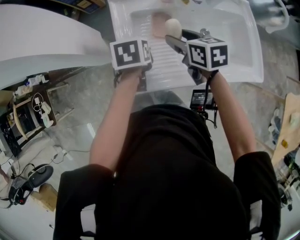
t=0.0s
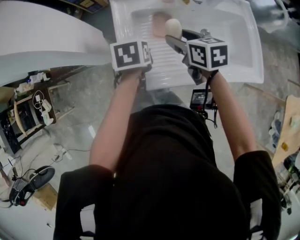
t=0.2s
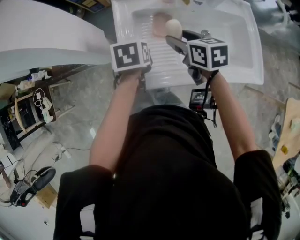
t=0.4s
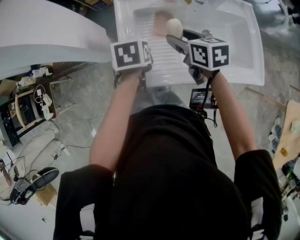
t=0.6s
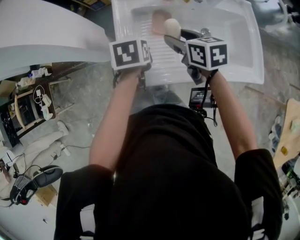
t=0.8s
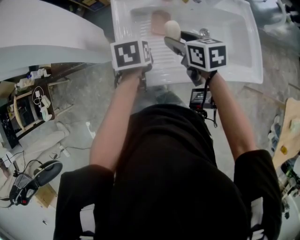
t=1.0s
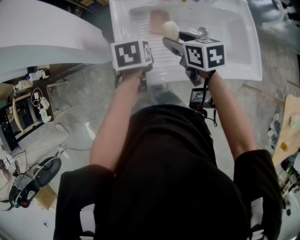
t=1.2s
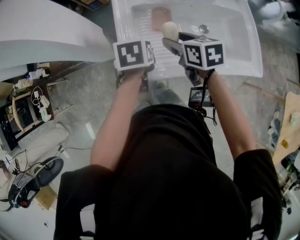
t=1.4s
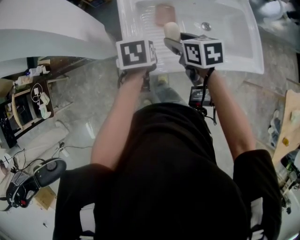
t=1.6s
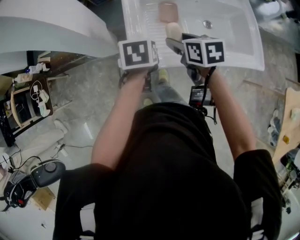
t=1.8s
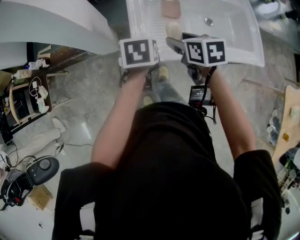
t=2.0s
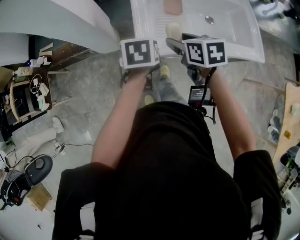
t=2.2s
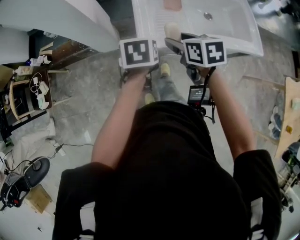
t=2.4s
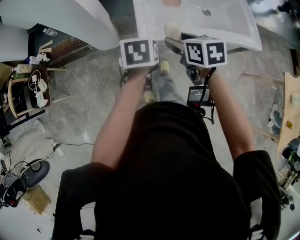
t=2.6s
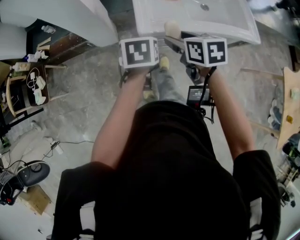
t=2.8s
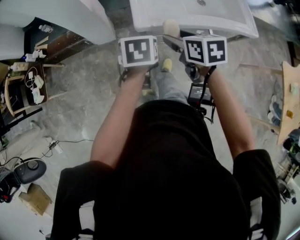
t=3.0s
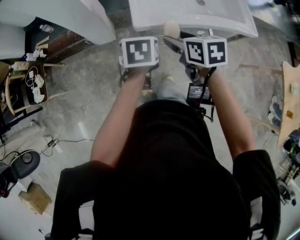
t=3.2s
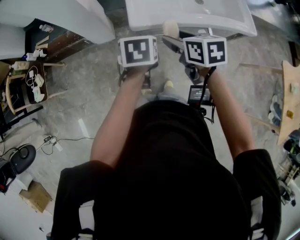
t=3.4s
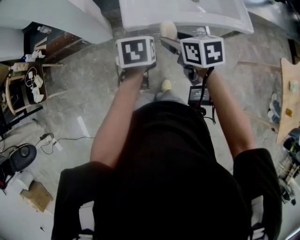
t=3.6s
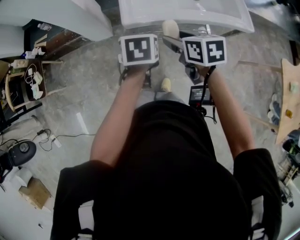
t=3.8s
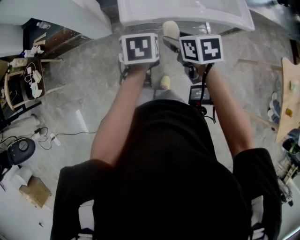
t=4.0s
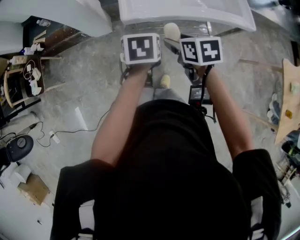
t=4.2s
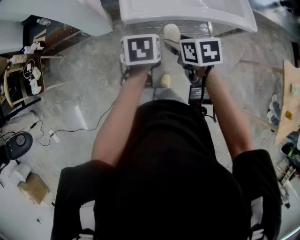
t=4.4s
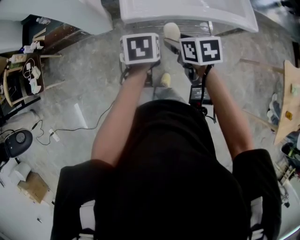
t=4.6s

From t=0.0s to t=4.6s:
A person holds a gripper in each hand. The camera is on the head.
From t=0.0s to t=1.6s: Both grippers move backward, some 5 cm.
From t=1.6s to t=3.0s: The left gripper goes approximately 20 cm backward, while the right gripper shifts roughly 25 cm backward and to the left.
From t=3.0s to t=4.6s: The grippers both shift to the right by approximately 5 cm.

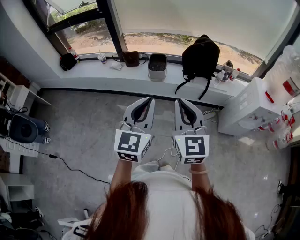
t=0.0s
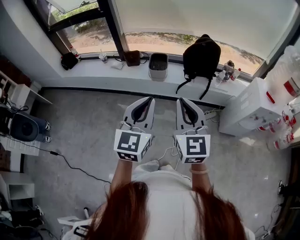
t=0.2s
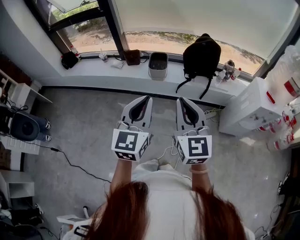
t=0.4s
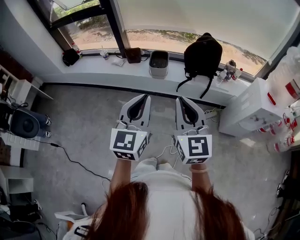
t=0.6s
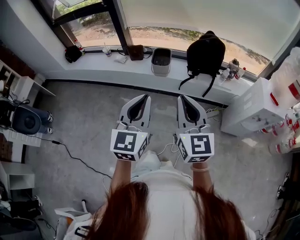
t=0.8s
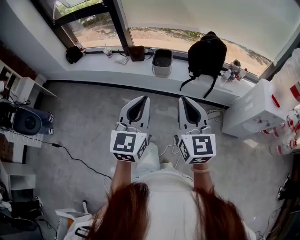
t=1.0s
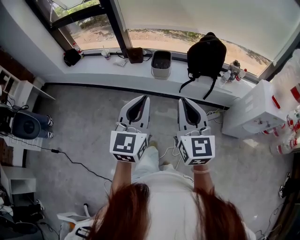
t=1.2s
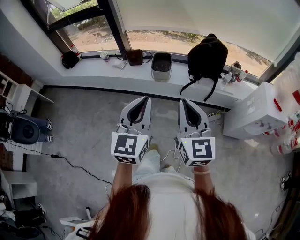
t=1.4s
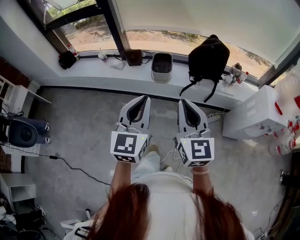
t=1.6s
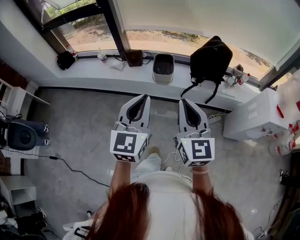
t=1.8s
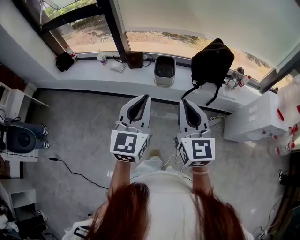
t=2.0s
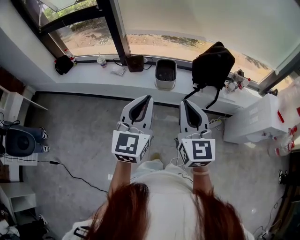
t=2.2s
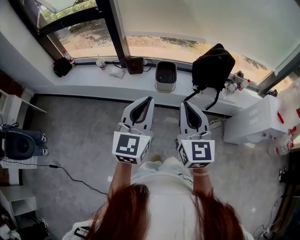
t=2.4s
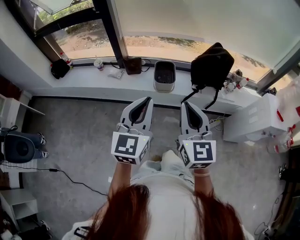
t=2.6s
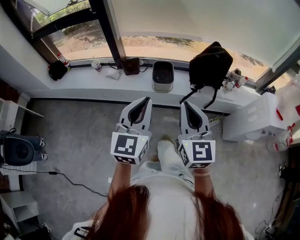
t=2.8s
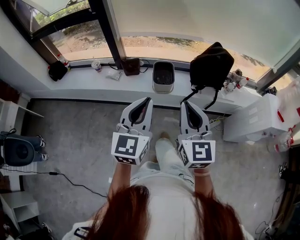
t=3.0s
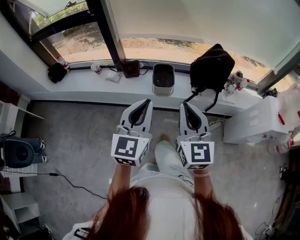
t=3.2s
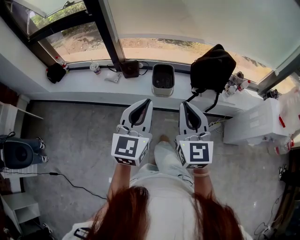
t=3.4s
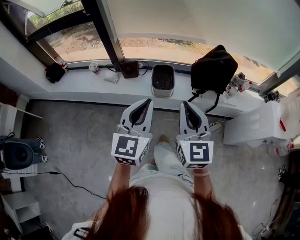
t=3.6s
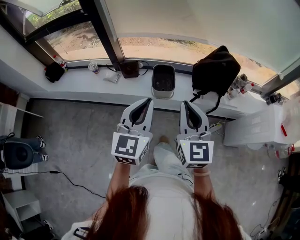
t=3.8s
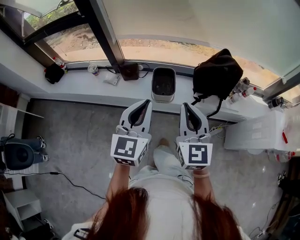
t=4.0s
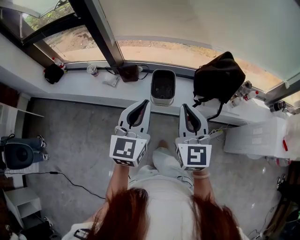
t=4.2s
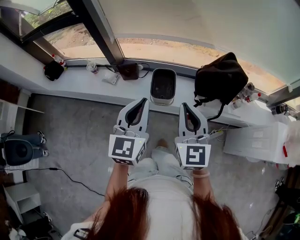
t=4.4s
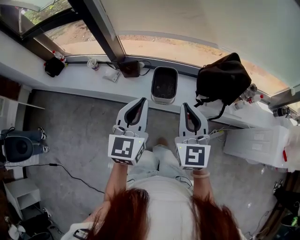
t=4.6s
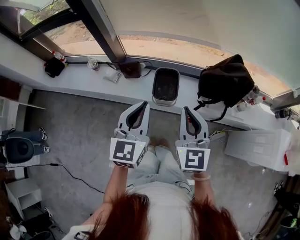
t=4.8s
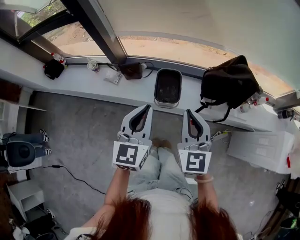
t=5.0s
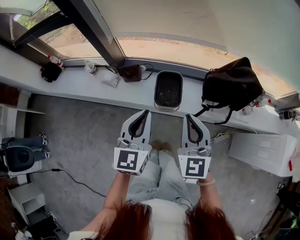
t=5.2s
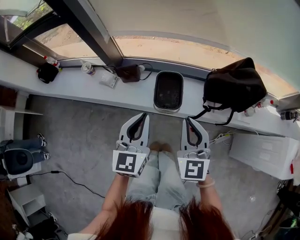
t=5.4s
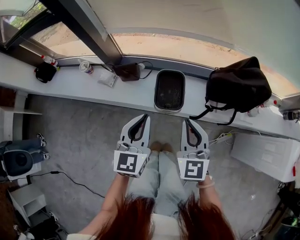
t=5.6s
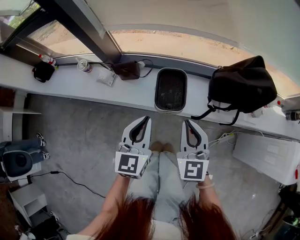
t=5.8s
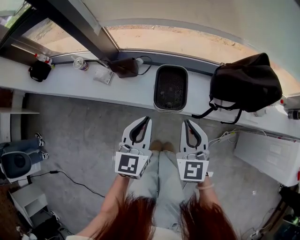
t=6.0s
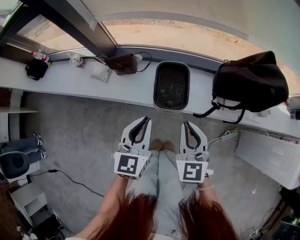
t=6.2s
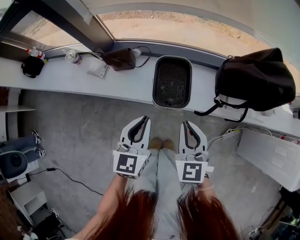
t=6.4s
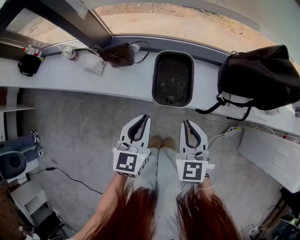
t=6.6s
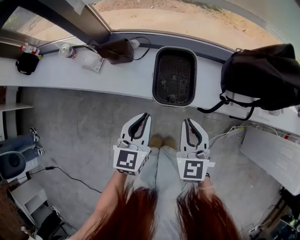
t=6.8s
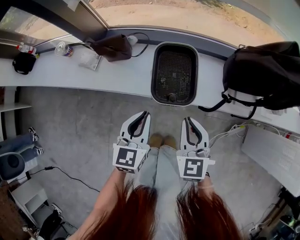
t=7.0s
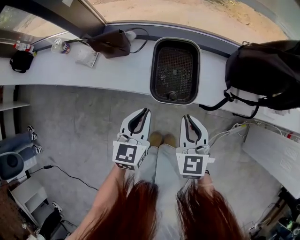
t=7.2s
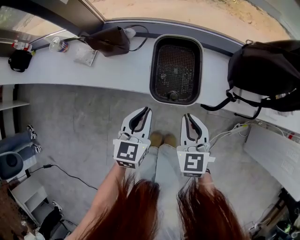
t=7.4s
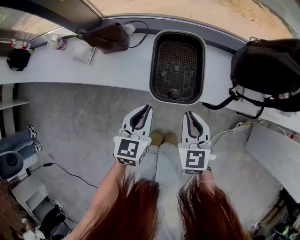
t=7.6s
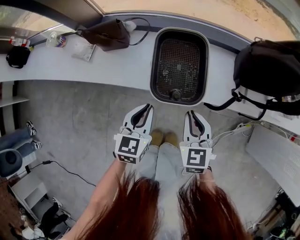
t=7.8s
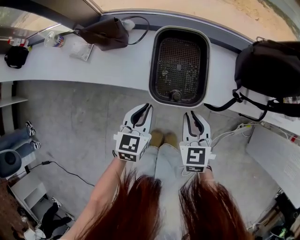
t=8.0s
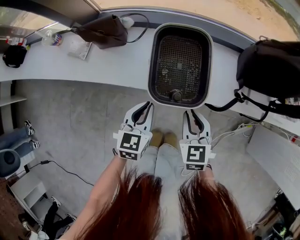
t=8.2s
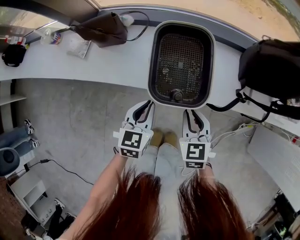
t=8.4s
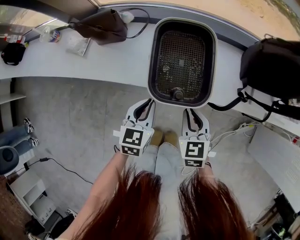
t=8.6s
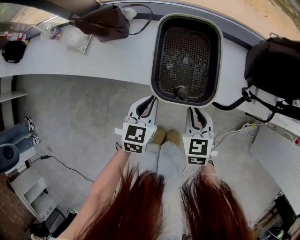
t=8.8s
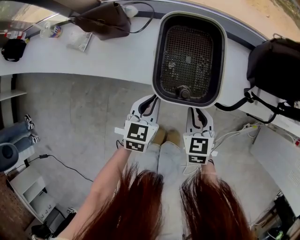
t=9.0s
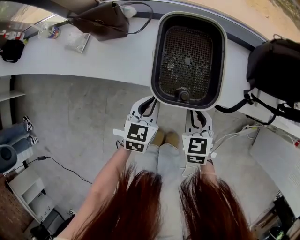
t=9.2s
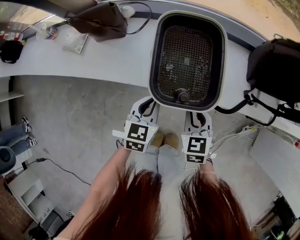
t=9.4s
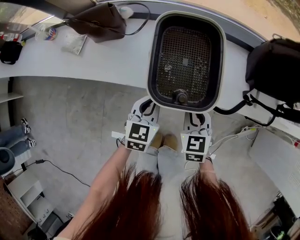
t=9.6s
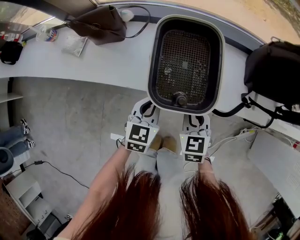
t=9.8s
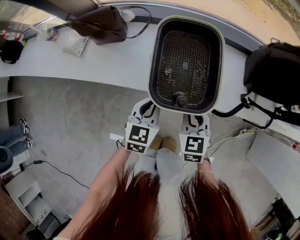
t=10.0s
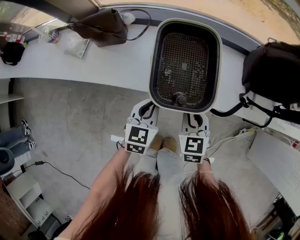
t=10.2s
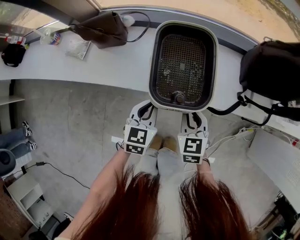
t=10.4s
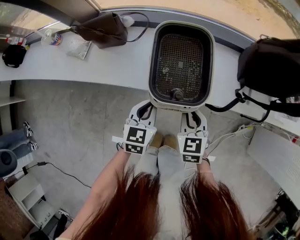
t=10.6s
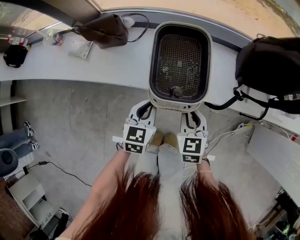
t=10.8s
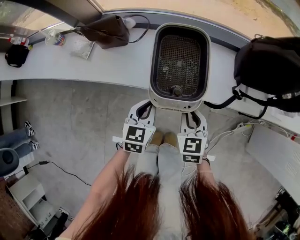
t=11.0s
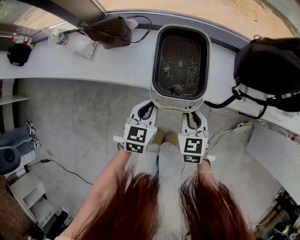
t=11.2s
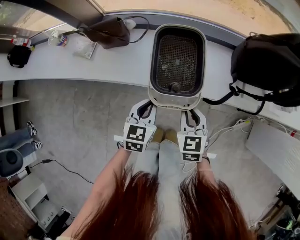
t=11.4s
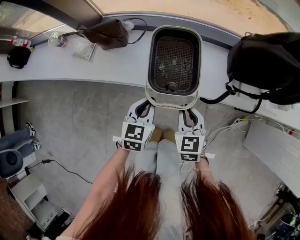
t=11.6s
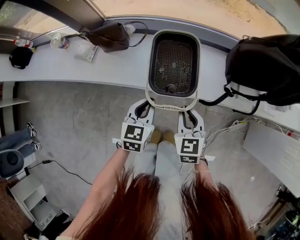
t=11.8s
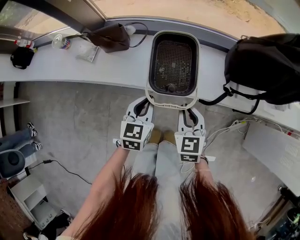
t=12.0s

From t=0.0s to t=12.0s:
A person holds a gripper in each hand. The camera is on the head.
From t=0.0s to t=1.6s: The two grippers go some 10 cm forward.
From t=1.6s to t=3.0s: Both grippers move forward and to the left, about 15 cm.
From t=3.0s to t=4.4s: Both grippers travel together forward, about 20 cm.
From t=4.4s to t=6.0s: The grippers both shift downward and forward by approximately 25 cm.
From t=6.0s to t=7.6s: Both grippers travel together downward, about 25 cm.
From t=7.6s to t=9.0s: The grippers both shift downward by about 15 cm.
From t=9.0s to t=10.4s: The grippers move only a little.
From t=10.4s to t=12.0s: The two grippers go about 10 cm upward.

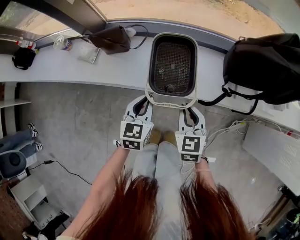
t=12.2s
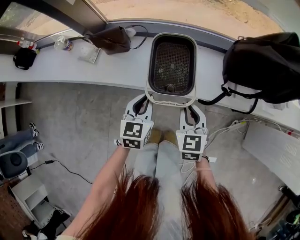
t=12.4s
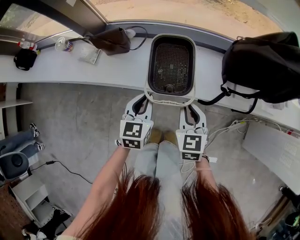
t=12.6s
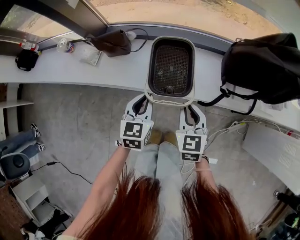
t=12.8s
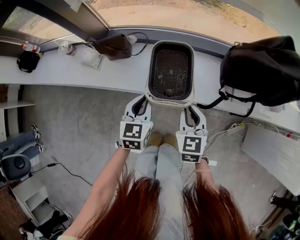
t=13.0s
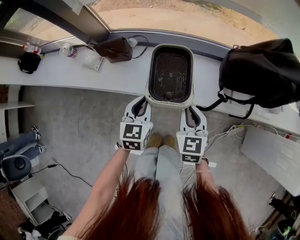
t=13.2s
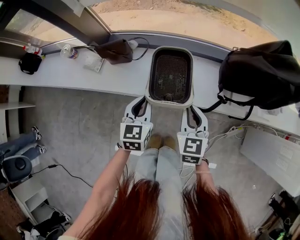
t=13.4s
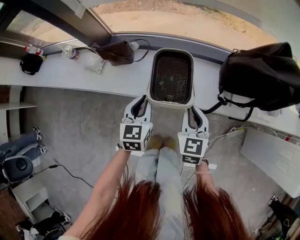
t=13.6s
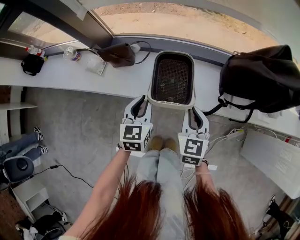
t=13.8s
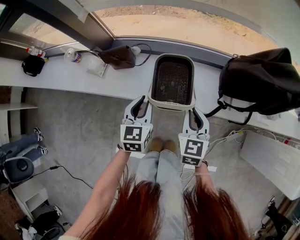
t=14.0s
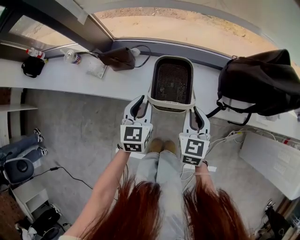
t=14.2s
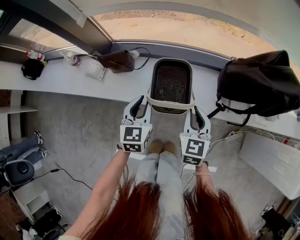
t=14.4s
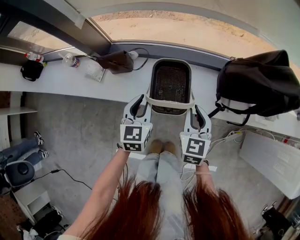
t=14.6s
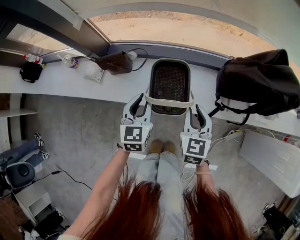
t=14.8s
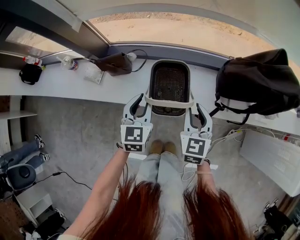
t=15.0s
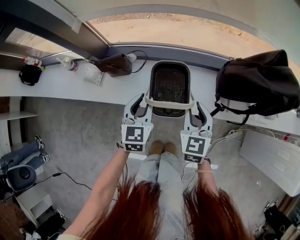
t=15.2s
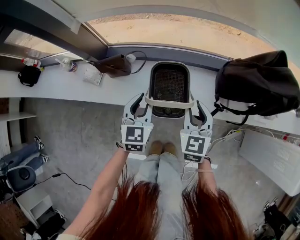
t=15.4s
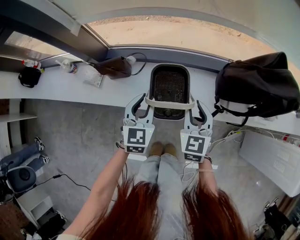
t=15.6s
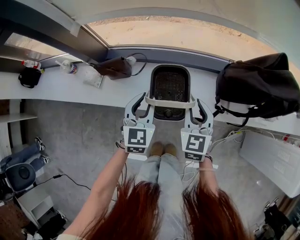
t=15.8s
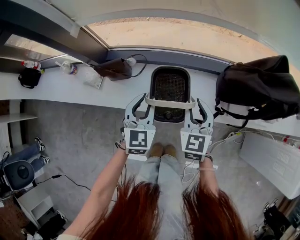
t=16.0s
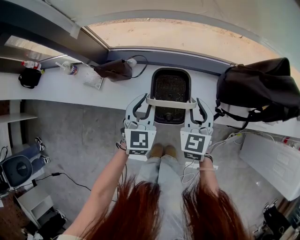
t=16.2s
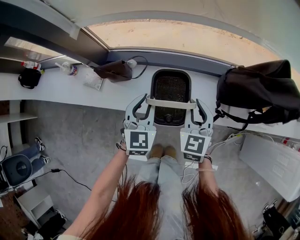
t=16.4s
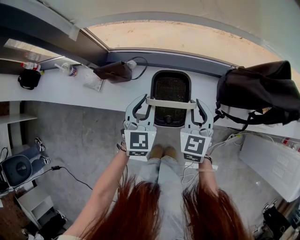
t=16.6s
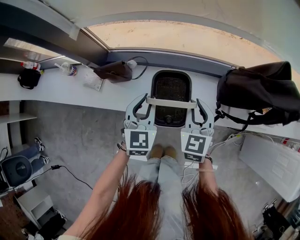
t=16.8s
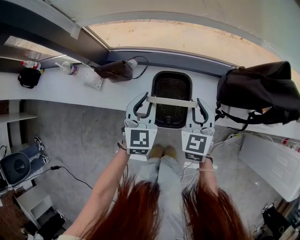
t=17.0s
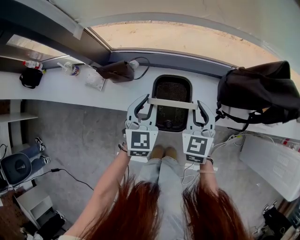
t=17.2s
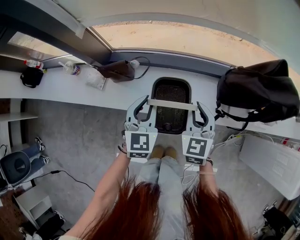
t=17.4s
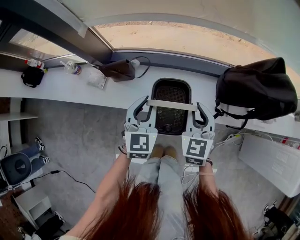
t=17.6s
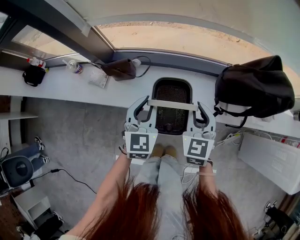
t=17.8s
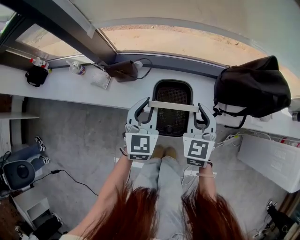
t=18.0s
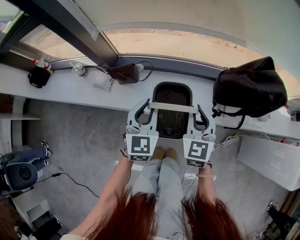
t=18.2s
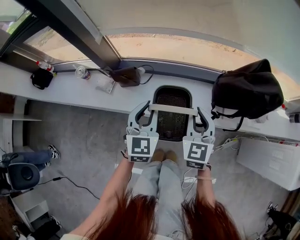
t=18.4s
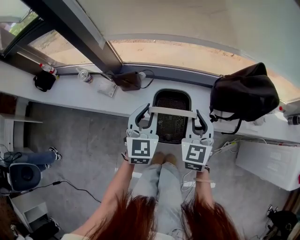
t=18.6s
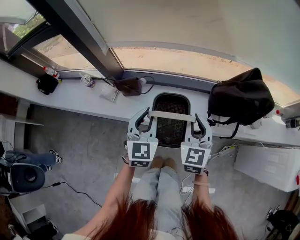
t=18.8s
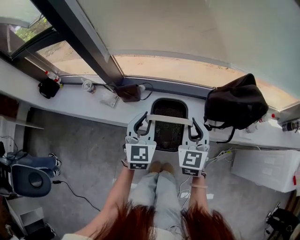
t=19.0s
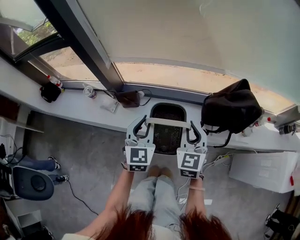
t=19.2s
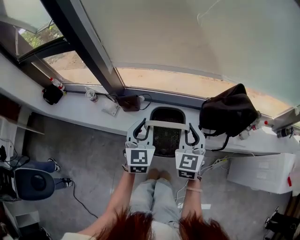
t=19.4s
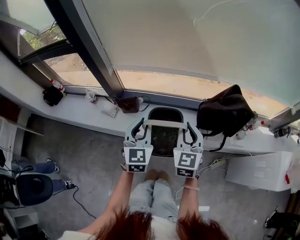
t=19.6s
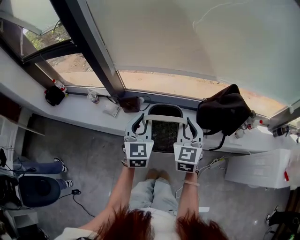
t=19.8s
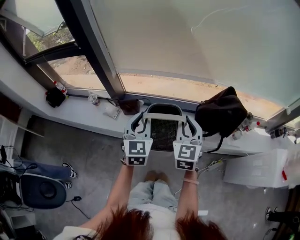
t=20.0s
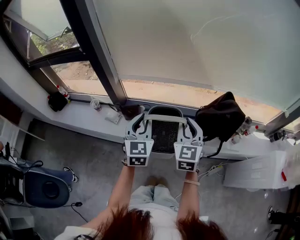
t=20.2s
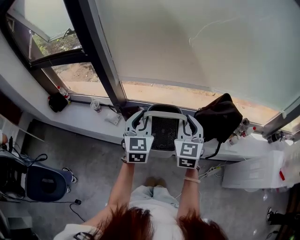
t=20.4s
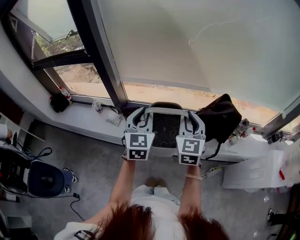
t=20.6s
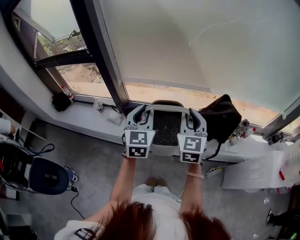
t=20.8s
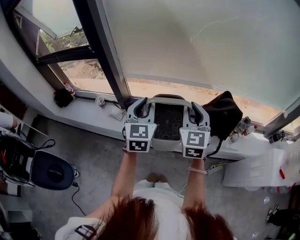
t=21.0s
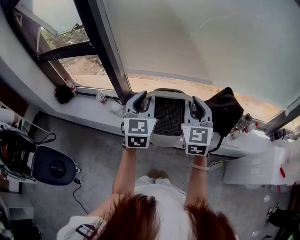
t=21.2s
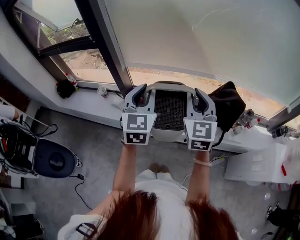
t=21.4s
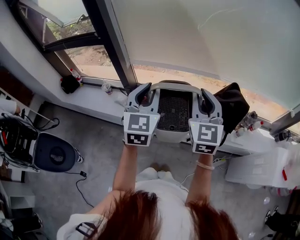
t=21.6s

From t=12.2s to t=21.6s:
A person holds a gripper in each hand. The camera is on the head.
From t=12.2s to t=13.8s: Both grippers move upward, approximately 5 cm.
From t=13.8s to t=15.4s: Both grippers travel together forward, about 5 cm.
From t=15.4s to t=17.0s: The grippers make only small movements.
From t=17.0s to t=18.4s: Both grippers move upward and backward, about 15 cm.
From t=18.4s to t=20.0s: The grippers both shift upward by some 20 cm.
From t=20.0s to t=21.6s: The grippers both shift upward by roughly 15 cm.
